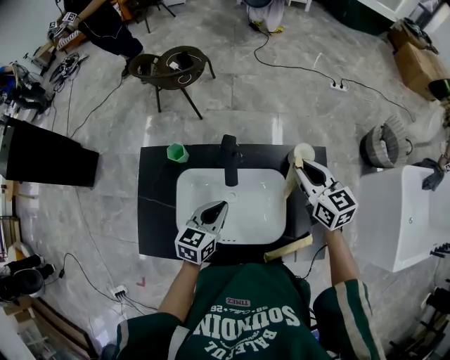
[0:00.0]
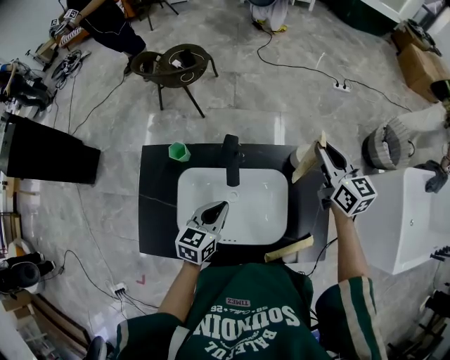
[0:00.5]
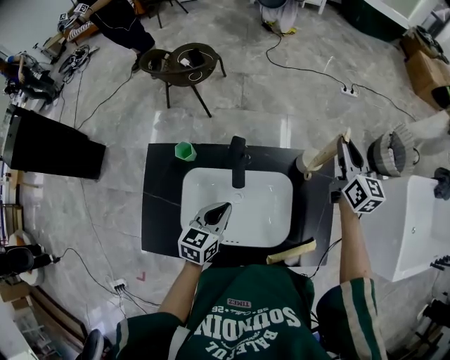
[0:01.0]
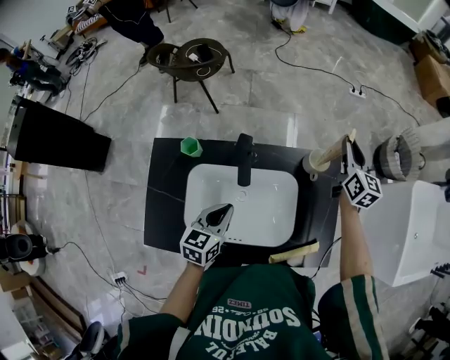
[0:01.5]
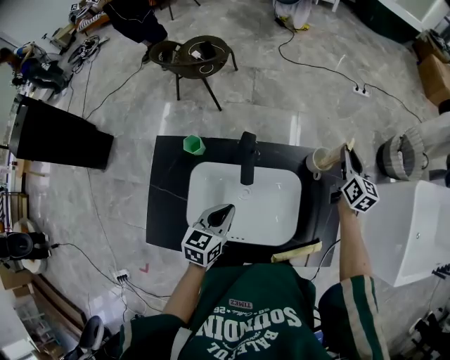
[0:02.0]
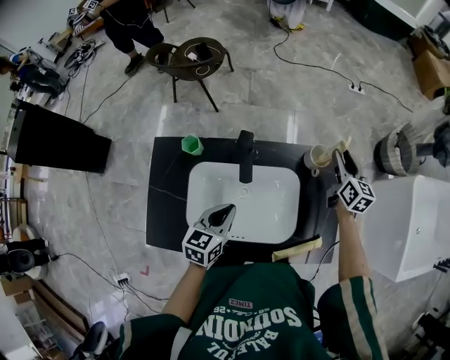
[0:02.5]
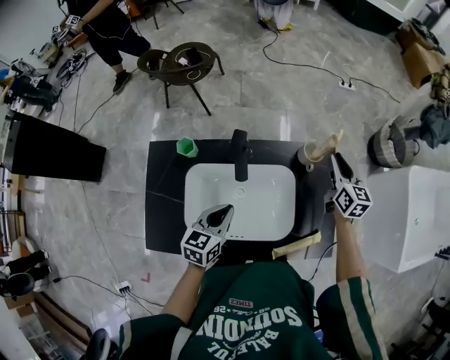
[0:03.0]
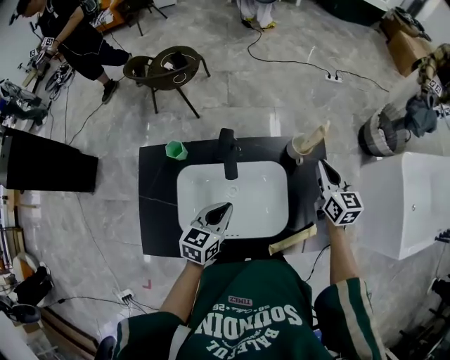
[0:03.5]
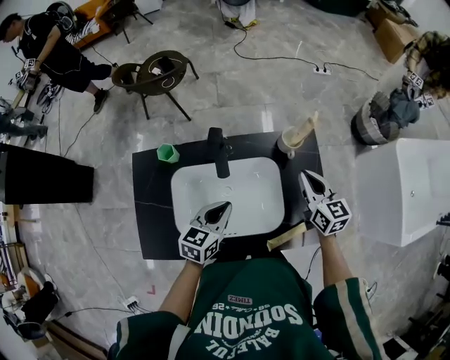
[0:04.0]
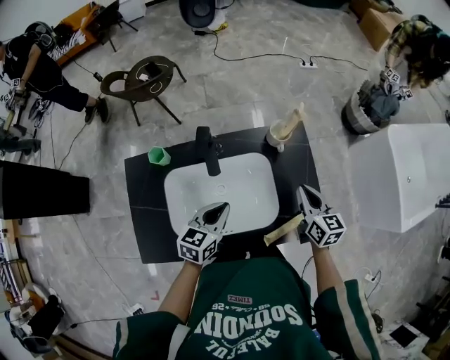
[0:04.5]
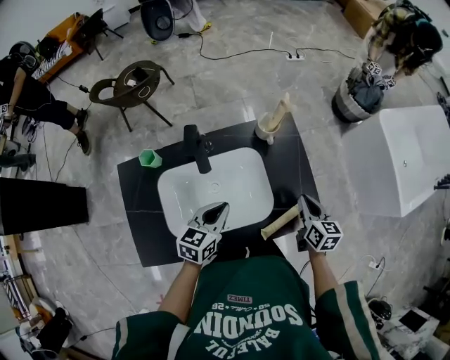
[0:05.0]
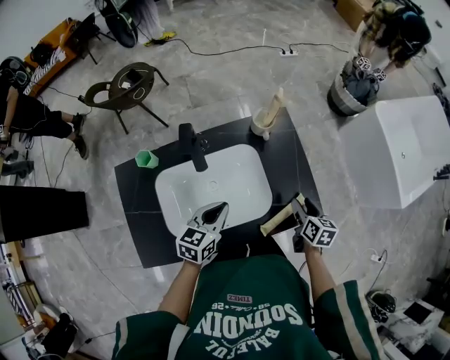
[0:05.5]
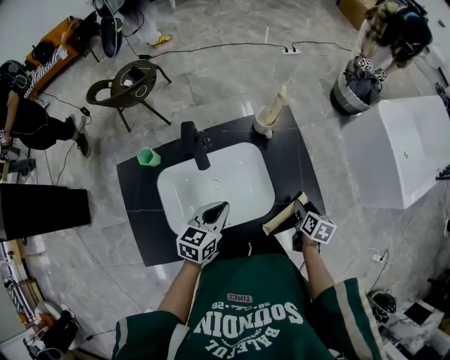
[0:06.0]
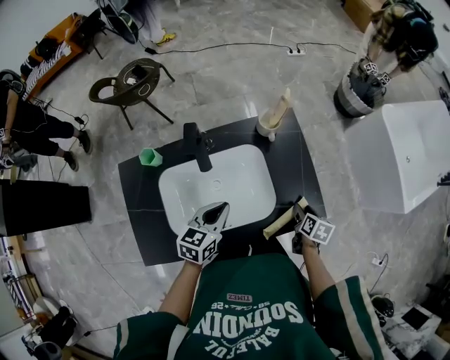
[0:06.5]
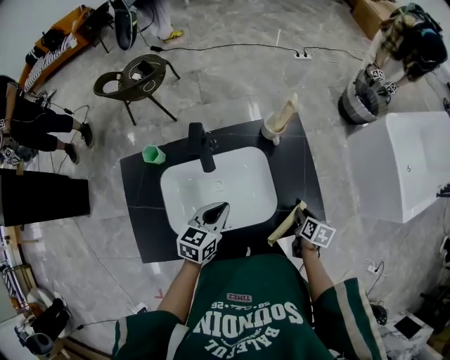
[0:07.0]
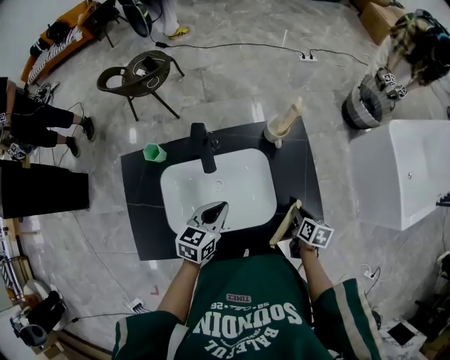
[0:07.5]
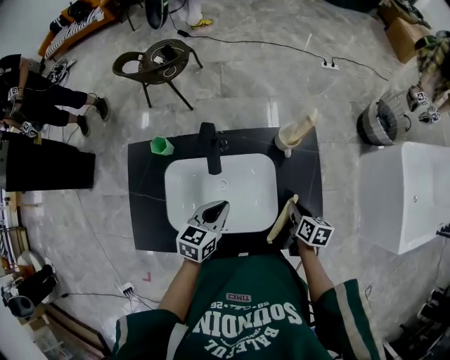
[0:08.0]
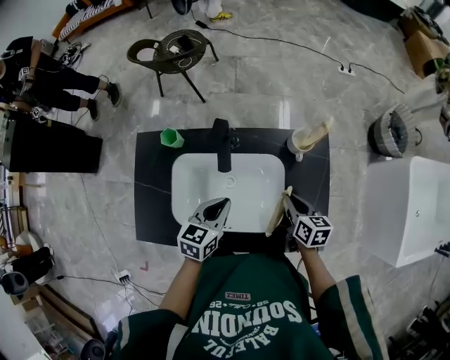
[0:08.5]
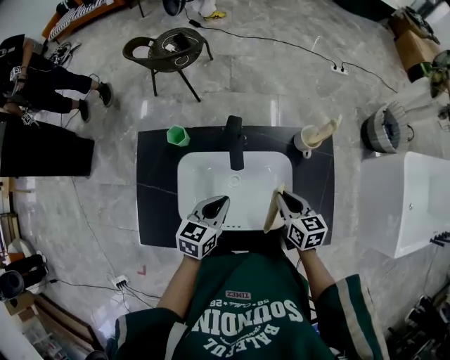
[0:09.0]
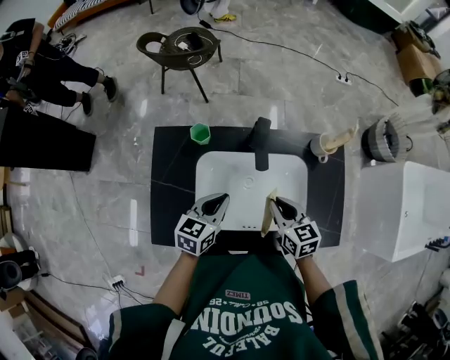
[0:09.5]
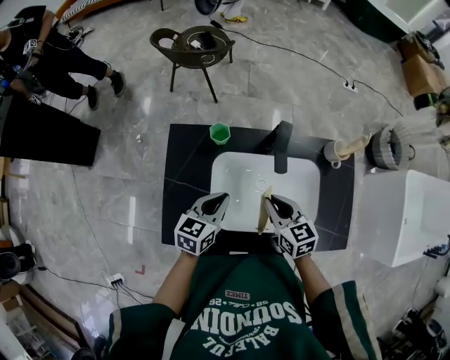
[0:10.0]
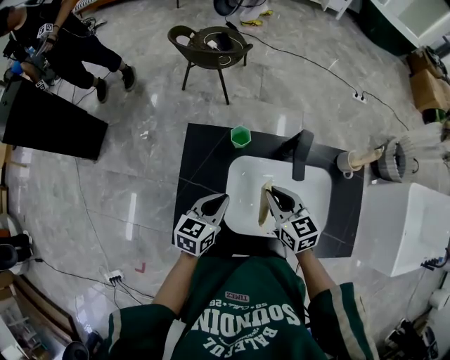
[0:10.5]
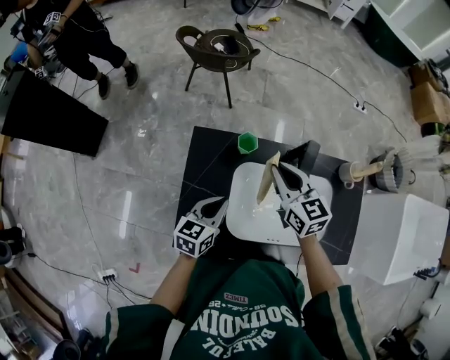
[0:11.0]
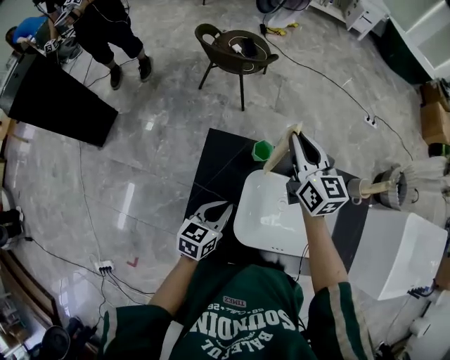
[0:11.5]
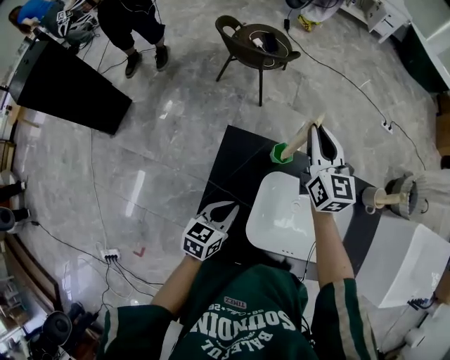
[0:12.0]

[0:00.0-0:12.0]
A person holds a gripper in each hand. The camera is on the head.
0:00.0 to 0:02.0: The right gripper heads to the right, forward and downward, covering approximately 15 cm, and rotates approximately 30 degrees.
0:02.0 to 0:04.0: The right gripper heads backward, covering roughly 20 cm, and opens, then closes once more. The left gripper travels to the right by about 5 cm.
0:04.0 to 0:06.0: The left gripper changes place by approximately 5 cm; the right gripper travels downward, backward and to the right by approximately 25 cm, tilts its fingers approximately 30 degrees downward, and opens.
0:06.0 to 0:08.0: The right gripper goes about 10 cm to the left and forward, rotates roughly 20 degrees, and closes up.
0:08.0 to 0:10.0: The right gripper is displaced to the left by some 30 cm, and swivels some 40 degrees, while the left gripper is displaced to the left by approximately 20 cm.
0:10.0 to 0:12.0: The right gripper moves forward, to the left and upward, approximately 35 cm, and swivels approximately 30 degrees, while the left gripper is displaced to the left by roughly 15 cm.

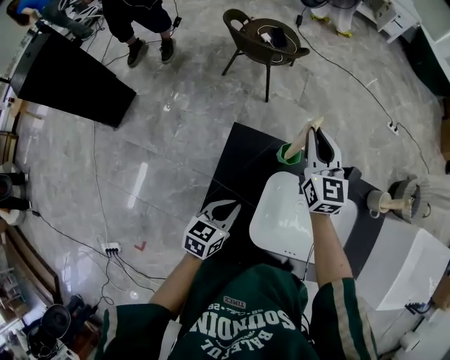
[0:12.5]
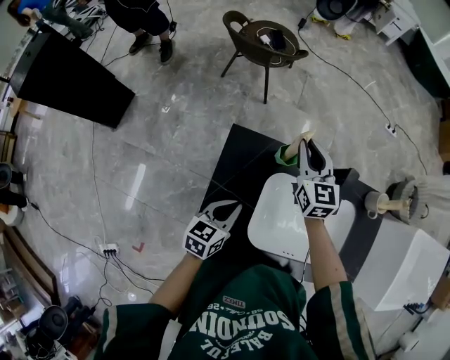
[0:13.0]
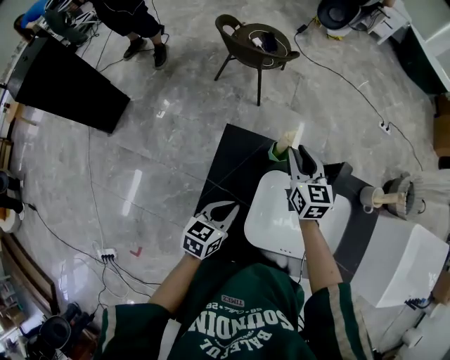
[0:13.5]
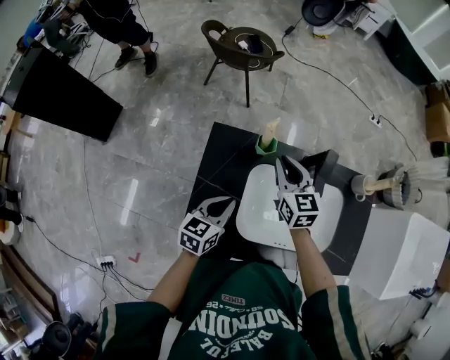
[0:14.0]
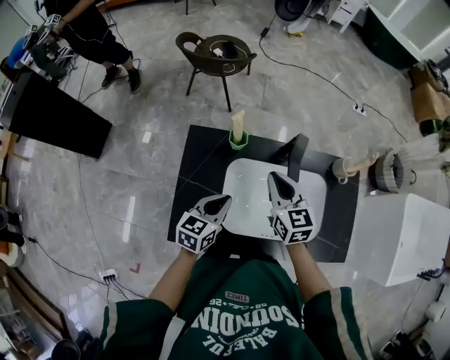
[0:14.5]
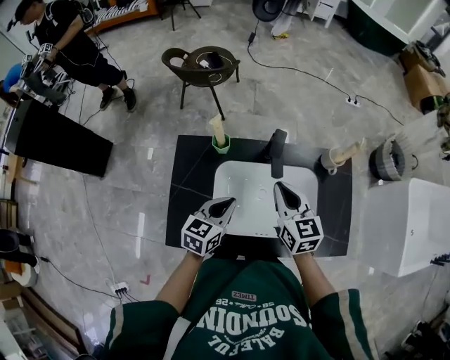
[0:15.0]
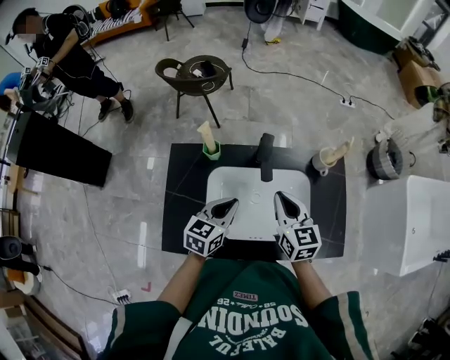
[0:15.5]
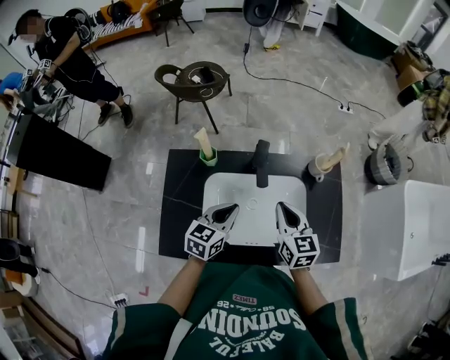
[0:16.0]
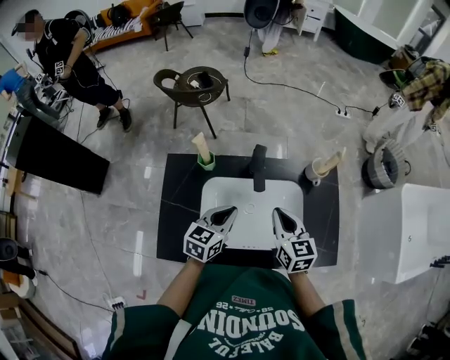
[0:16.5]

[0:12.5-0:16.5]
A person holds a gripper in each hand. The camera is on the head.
0:12.5 to 0:14.5: The left gripper travels to the right and upward by roughly 10 cm. Meanwhile the right gripper is displaced backward and to the right by about 20 cm.
0:14.5 to 0:16.5: Both grippers move to the right, some 15 cm.

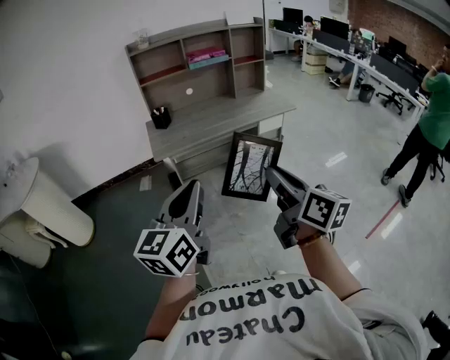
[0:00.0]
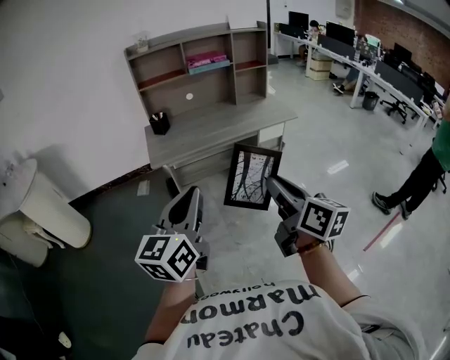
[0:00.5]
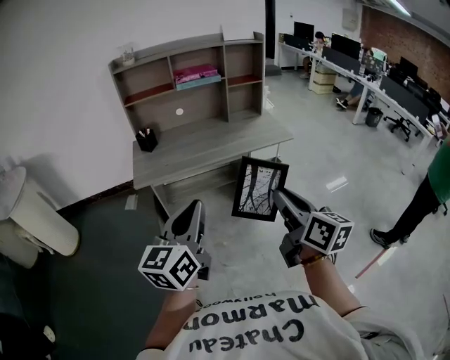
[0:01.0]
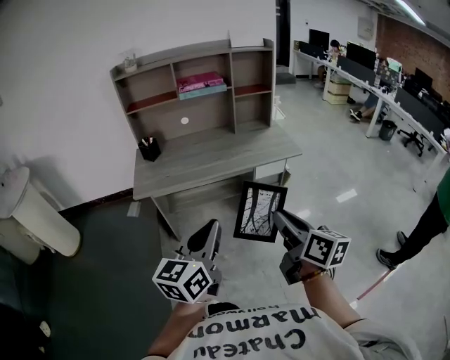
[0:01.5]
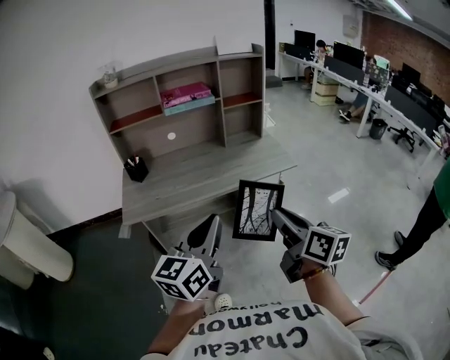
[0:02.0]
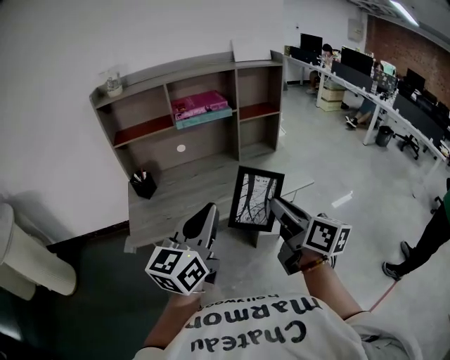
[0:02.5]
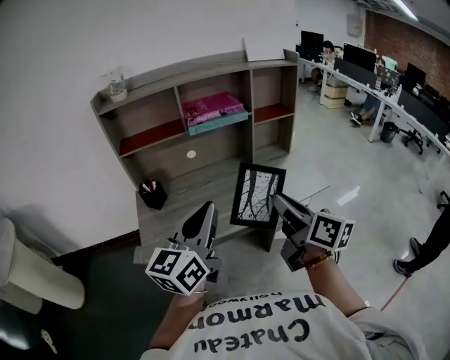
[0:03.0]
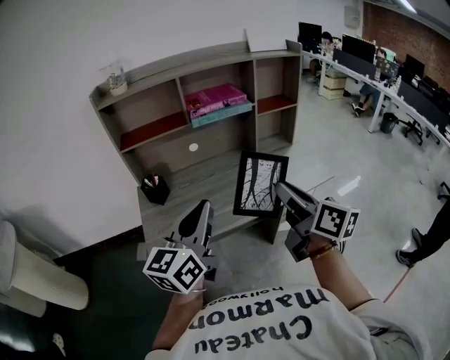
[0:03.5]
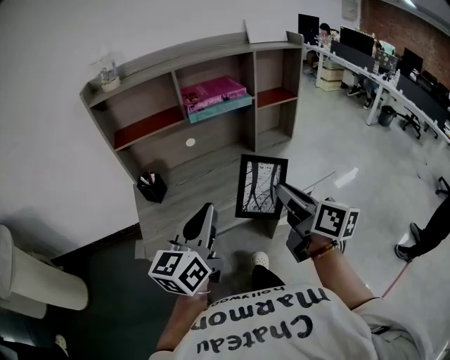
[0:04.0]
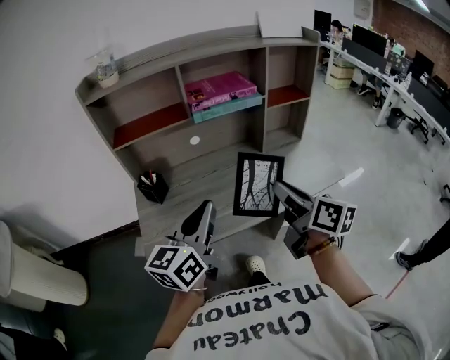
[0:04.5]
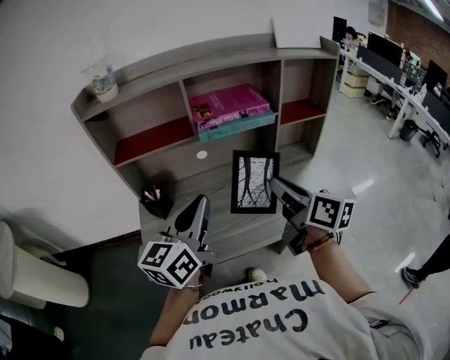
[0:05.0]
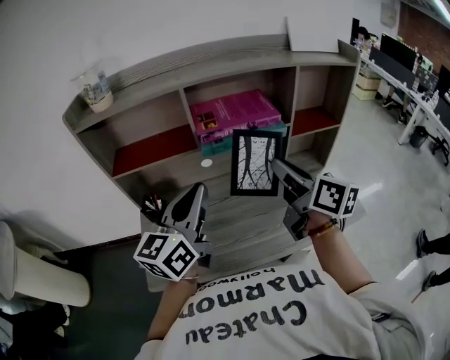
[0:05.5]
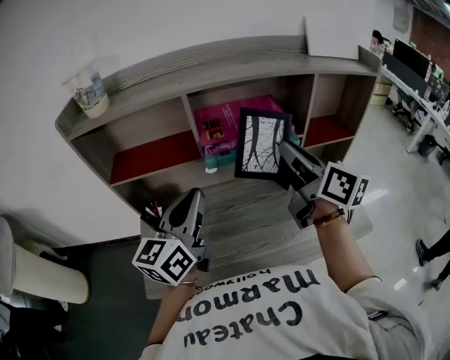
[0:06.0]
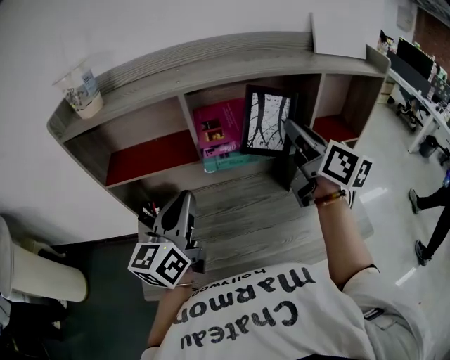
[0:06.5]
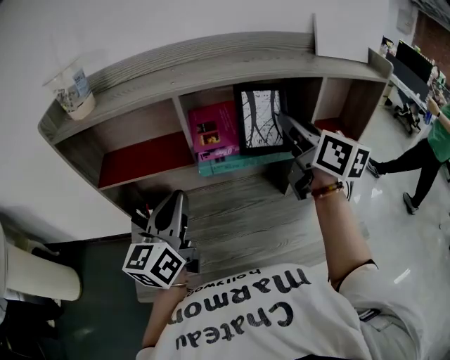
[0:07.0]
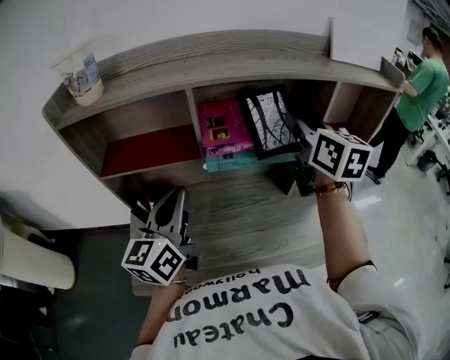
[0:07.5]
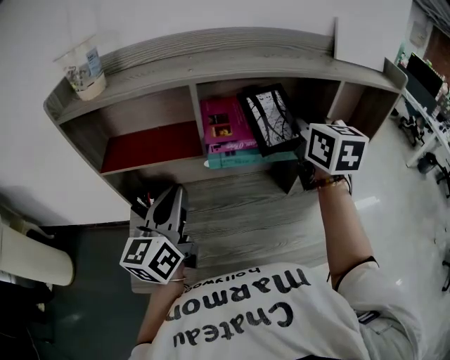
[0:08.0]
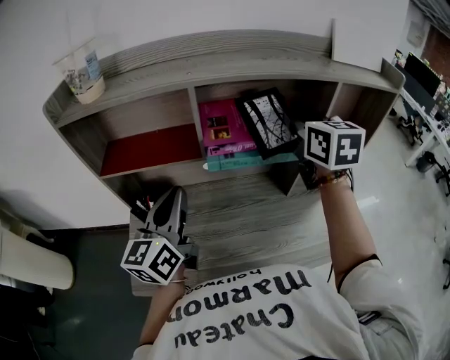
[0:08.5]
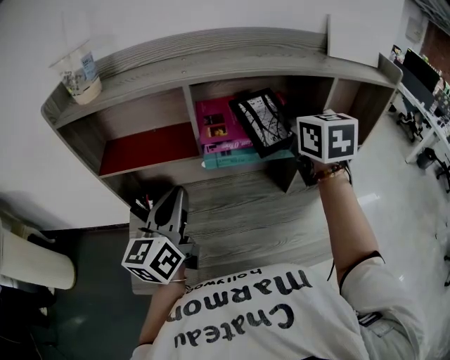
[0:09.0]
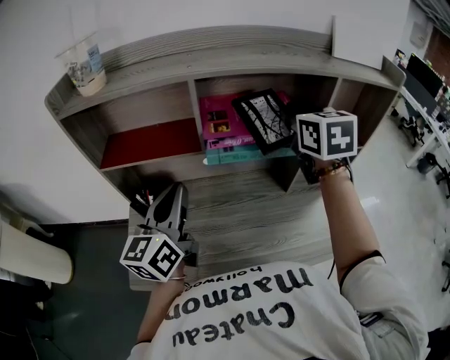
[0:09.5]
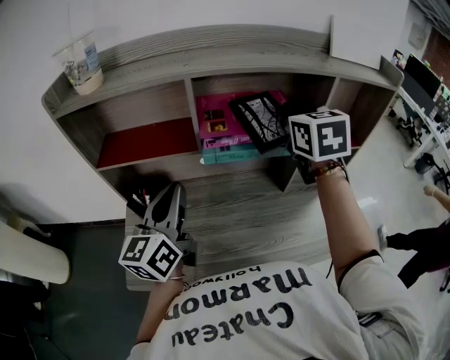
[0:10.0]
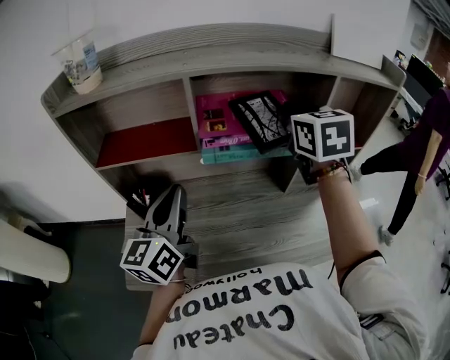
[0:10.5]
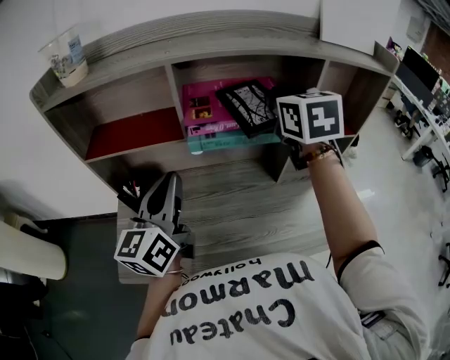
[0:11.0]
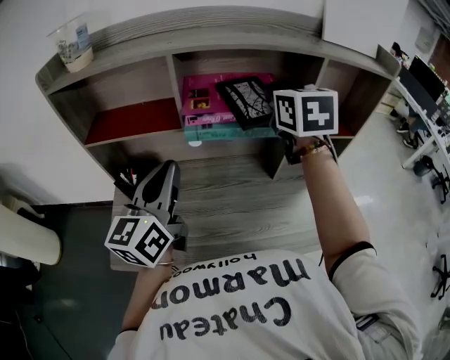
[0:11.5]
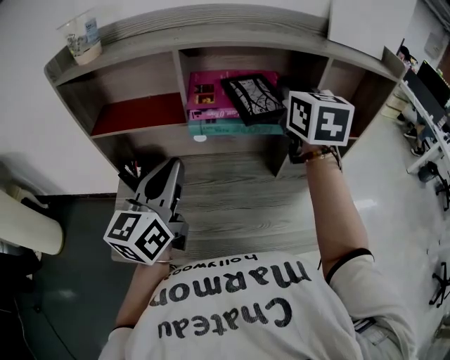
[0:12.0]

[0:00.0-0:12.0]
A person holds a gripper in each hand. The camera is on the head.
0:00.0 to 0:02.0: Both grippers move forward and to the right, approximately 35 cm.
0:02.0 to 0:04.0: Both grippers move forward and to the left, approximately 30 cm.
0:04.0 to 0:06.0: The grippers both shift forward by approximately 30 cm.
0:06.0 to 0:08.0: The right gripper moves forward, approximately 10 cm, and changes its angle by approximately 30 degrees. Meanwhile the left gripper shifts by about 5 cm.
0:08.0 to 0:10.0: The grippers stay close to where they were, moving slightly.
0:10.0 to 0:12.0: The left gripper changes place by approximately 5 cm.
